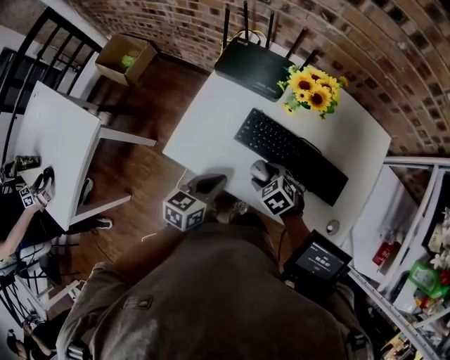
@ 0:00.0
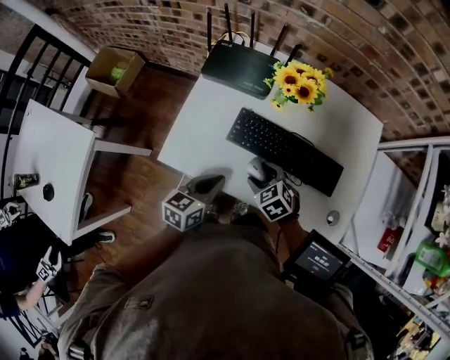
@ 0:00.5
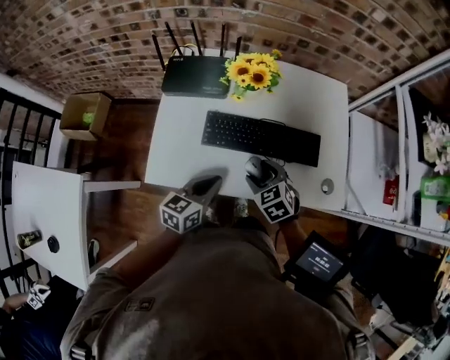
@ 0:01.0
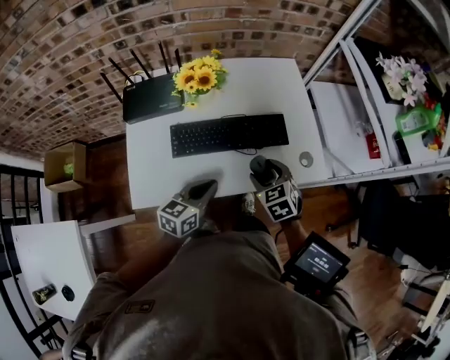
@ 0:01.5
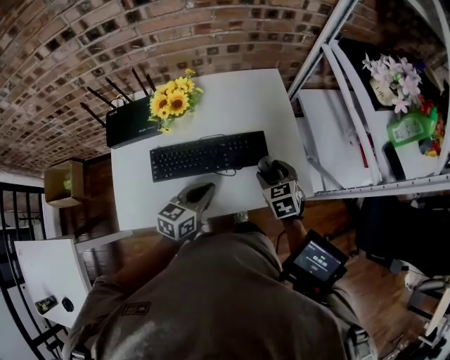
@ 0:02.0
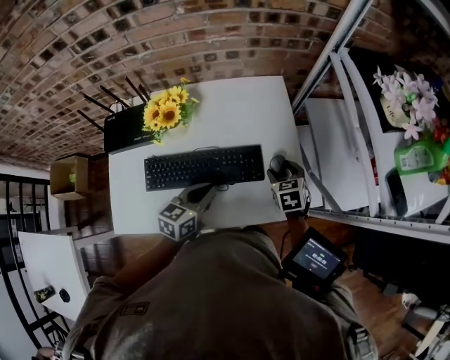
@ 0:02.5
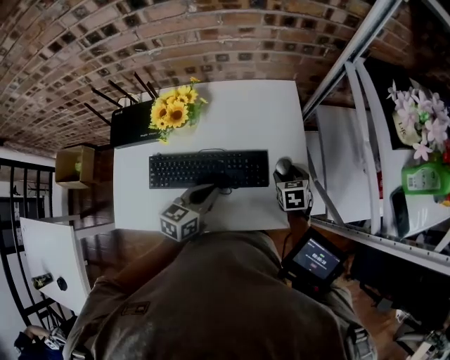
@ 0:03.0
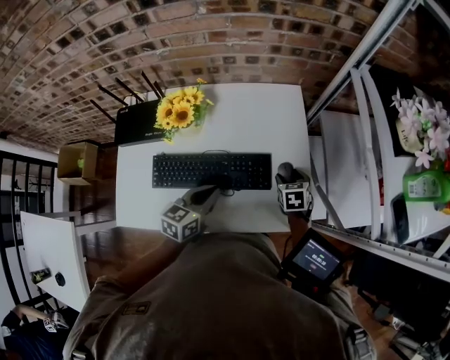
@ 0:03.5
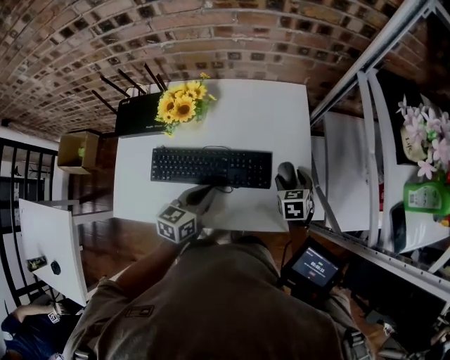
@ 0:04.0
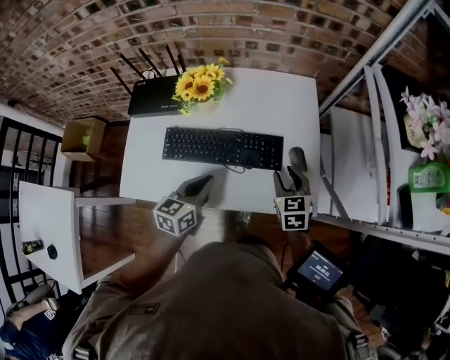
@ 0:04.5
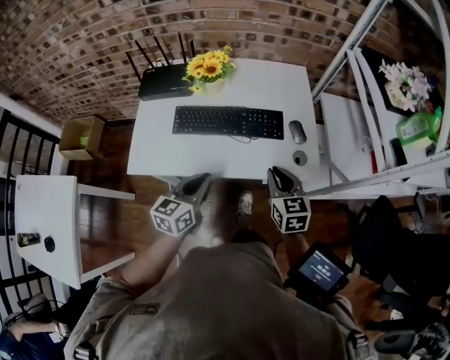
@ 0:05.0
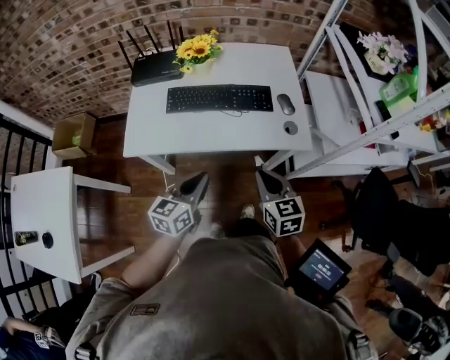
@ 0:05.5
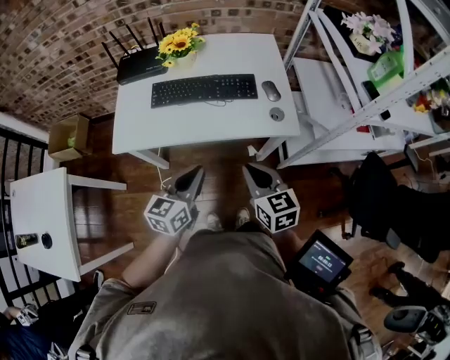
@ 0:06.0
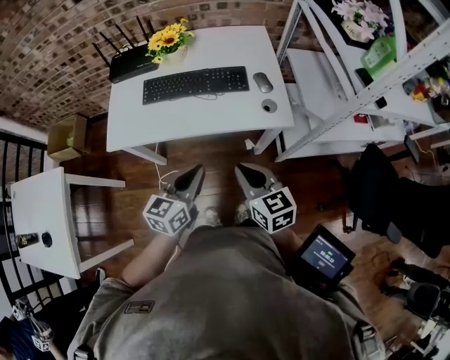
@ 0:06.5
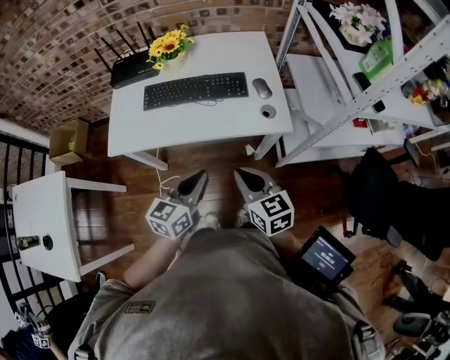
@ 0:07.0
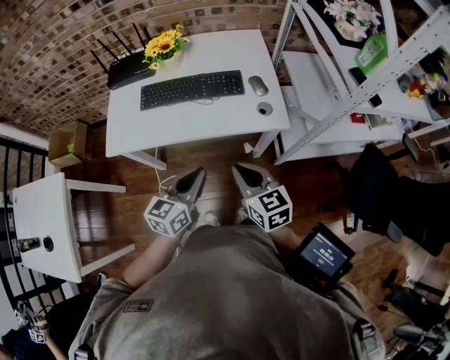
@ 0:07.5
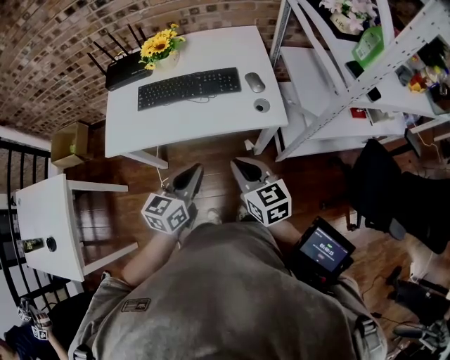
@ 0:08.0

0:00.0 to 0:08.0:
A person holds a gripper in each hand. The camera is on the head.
0:00.0 to 0:02.0: The right gripper changes place by approximately 30 cm, and turns by approximately 60 degrees, while the left gripper ends up approximately 20 cm from where it was, and changes its angle by approximately 30 degrees.
0:02.0 to 0:04.0: The left gripper moves forward, approximately 5 cm. Meanwhile the right gripper goes roughly 15 cm forward, downward and to the right.
0:04.0 to 0:06.0: The left gripper is displaced backward by roughly 25 cm, while the right gripper travels backward and upward by about 40 cm, changes its angle by some 30 degrees, and closes up.
0:06.0 to 0:08.0: The left gripper is displaced to the right by roughly 5 cm.

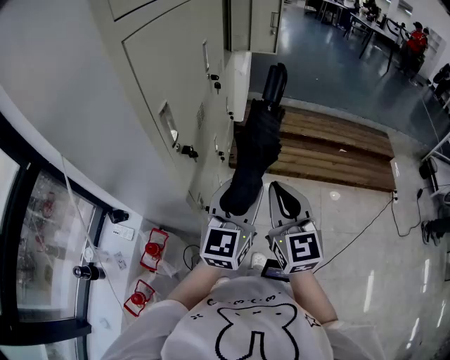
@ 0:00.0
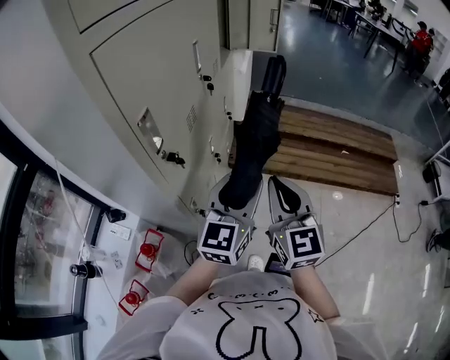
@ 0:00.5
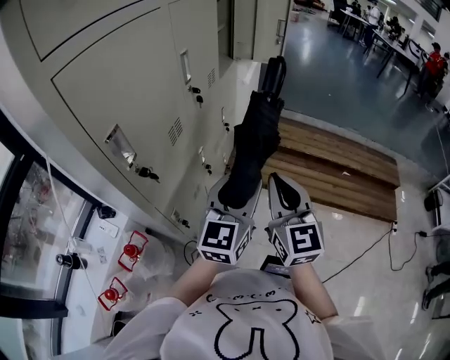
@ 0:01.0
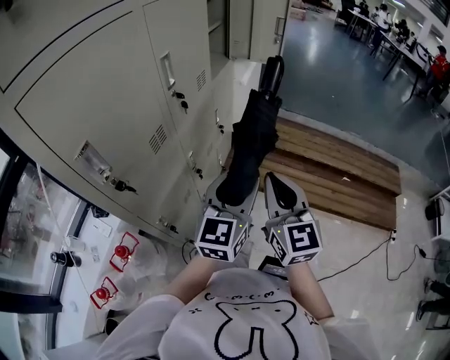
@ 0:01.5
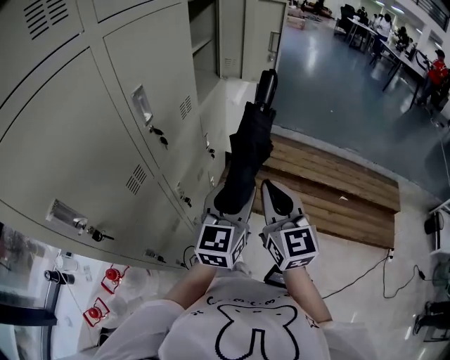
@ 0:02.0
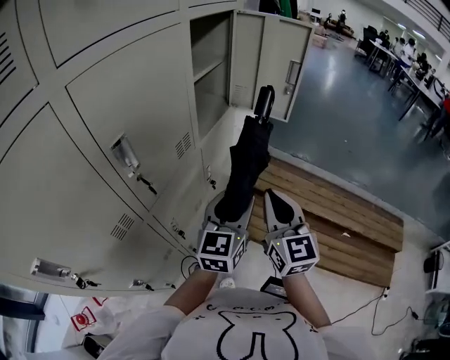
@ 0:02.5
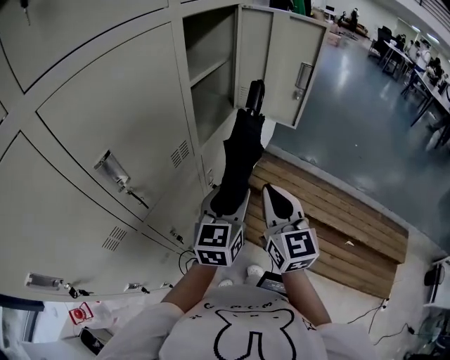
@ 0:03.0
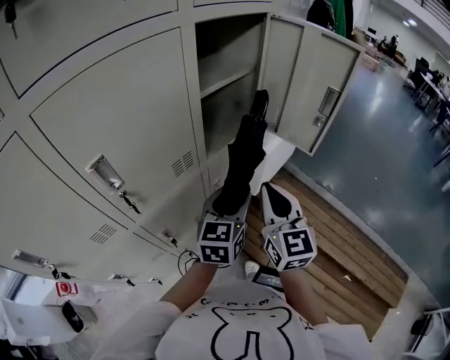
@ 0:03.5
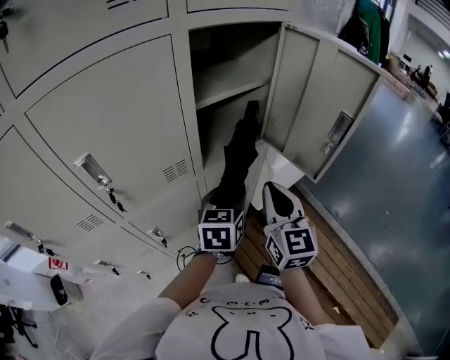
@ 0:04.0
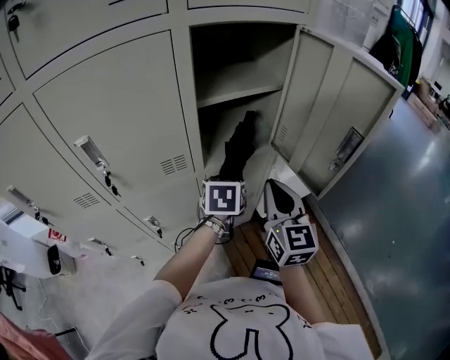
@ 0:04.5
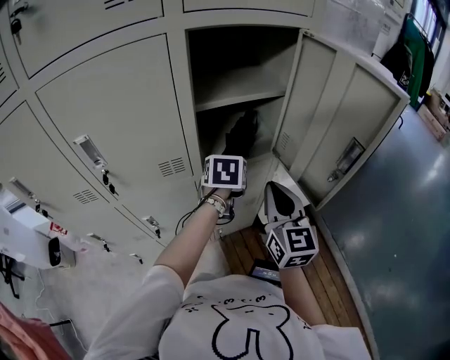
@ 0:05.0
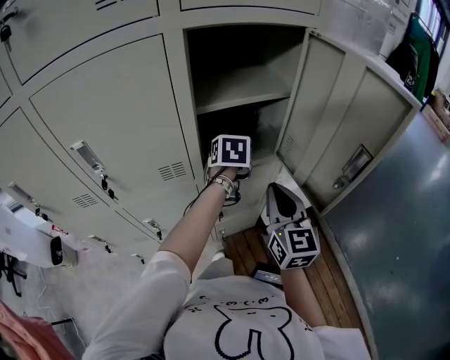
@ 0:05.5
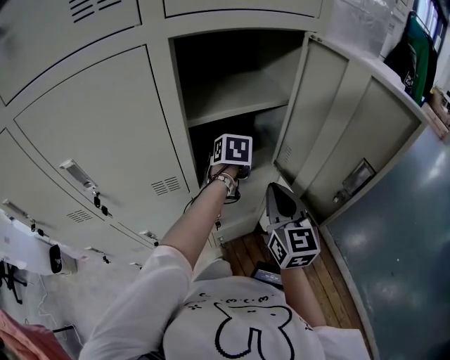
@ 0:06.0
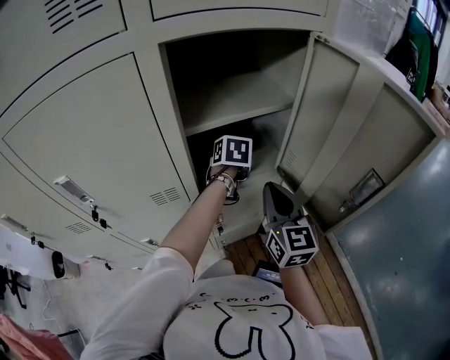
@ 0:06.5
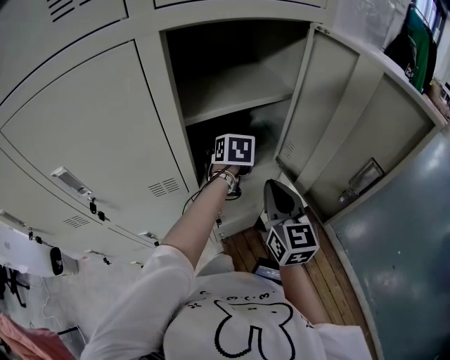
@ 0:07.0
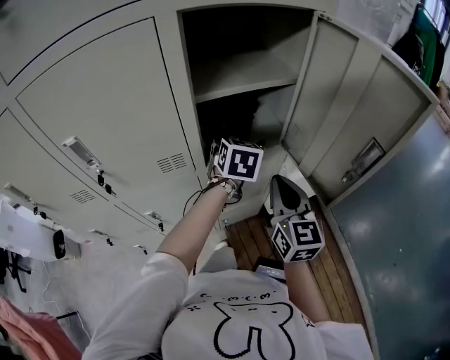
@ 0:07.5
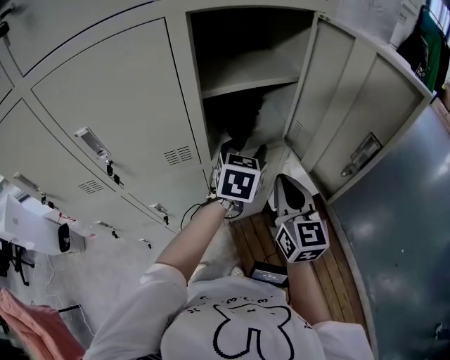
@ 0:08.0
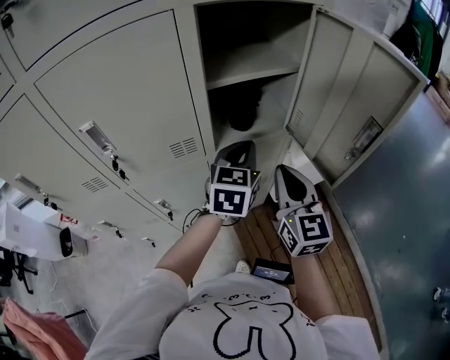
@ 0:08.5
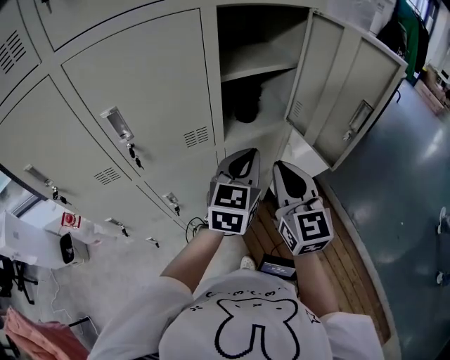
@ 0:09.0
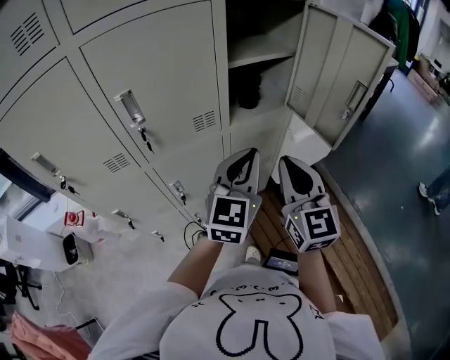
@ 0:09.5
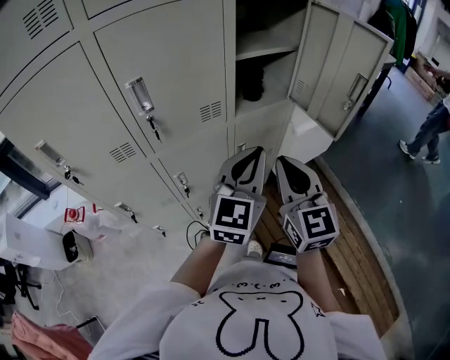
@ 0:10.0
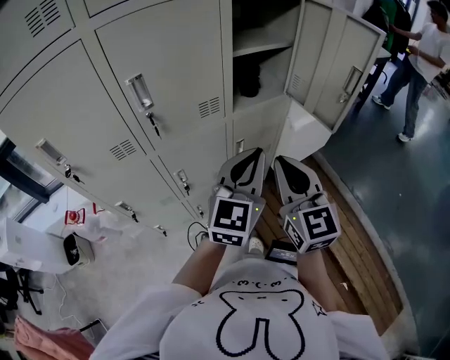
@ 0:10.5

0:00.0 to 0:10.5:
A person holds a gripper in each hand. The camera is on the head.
0:00.0 to 0:02.0: Both grippers move forward and to the right, approximately 30 cm.
0:02.0 to 0:04.0: The left gripper moves approximately 35 cm, and turns by about 50 degrees. The right gripper shifts by roughly 35 cm, and rotates about 30 degrees.
0:04.0 to 0:06.5: The left gripper moves forward, roughly 25 cm, and swivels about 30 degrees. Meanwhile the right gripper goes roughly 15 cm forward.
0:06.5 to 0:08.5: The left gripper heads backward and upward, covering roughly 20 cm, tips its fingers upward by about 30 degrees, and closes; the right gripper travels backward by some 10 cm.
0:08.5 to 0:10.5: The left gripper moves backward, approximately 25 cm, and swivels approximately 20 degrees; the right gripper moves backward and to the left, about 20 cm.

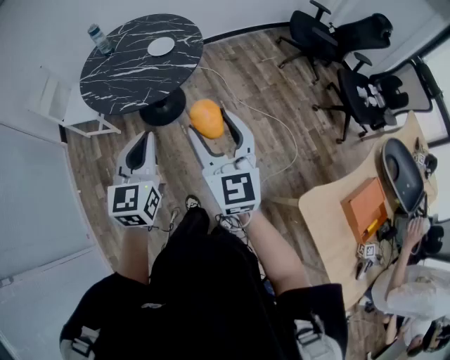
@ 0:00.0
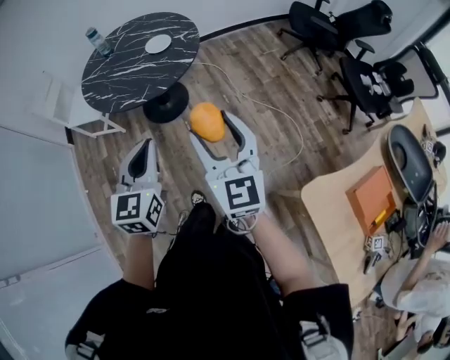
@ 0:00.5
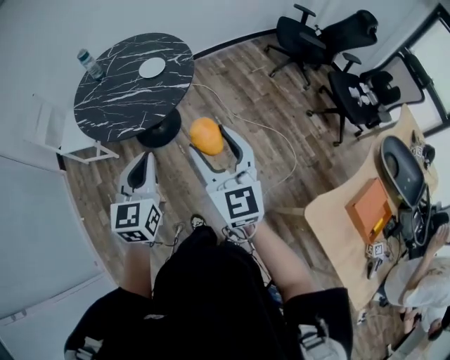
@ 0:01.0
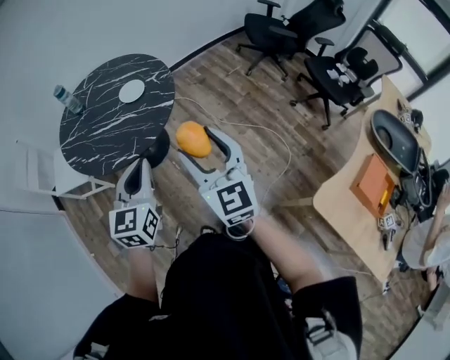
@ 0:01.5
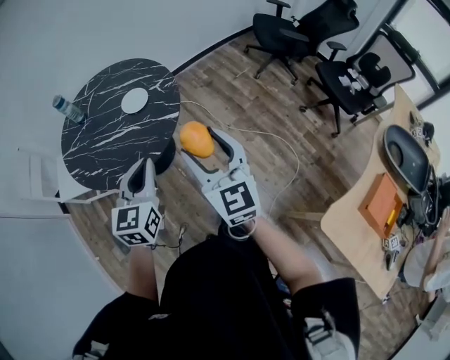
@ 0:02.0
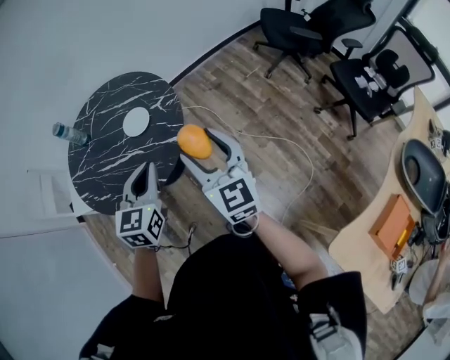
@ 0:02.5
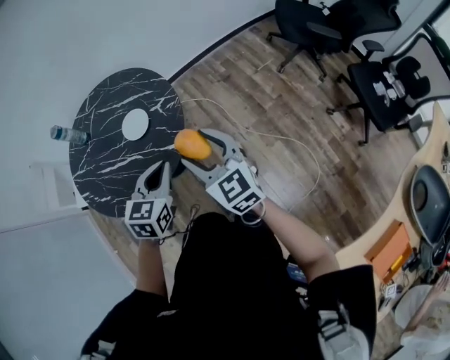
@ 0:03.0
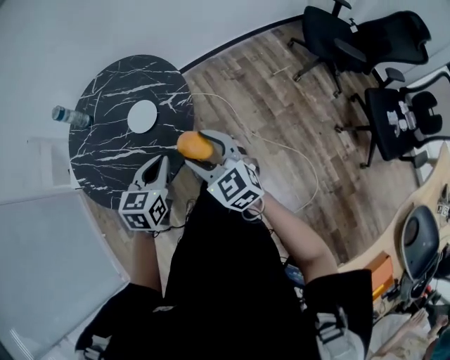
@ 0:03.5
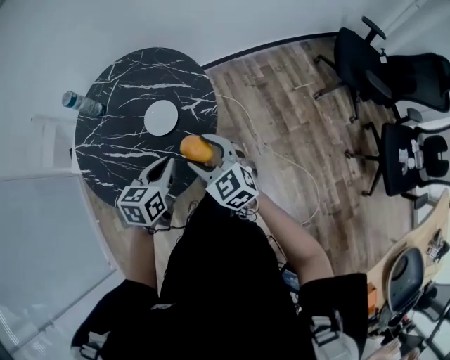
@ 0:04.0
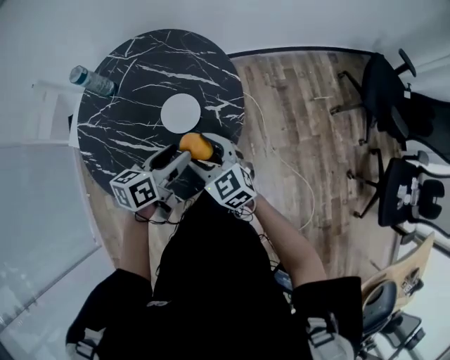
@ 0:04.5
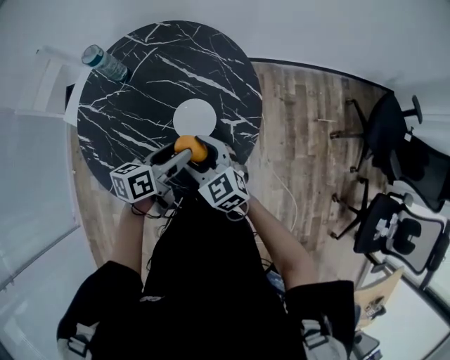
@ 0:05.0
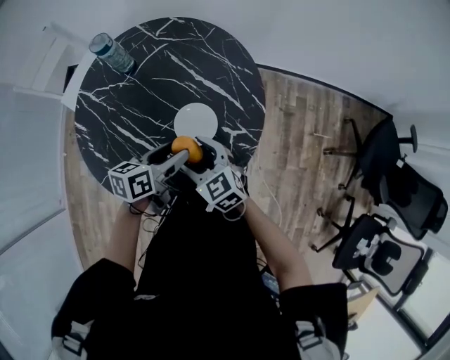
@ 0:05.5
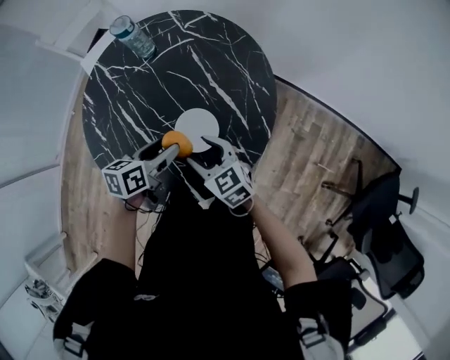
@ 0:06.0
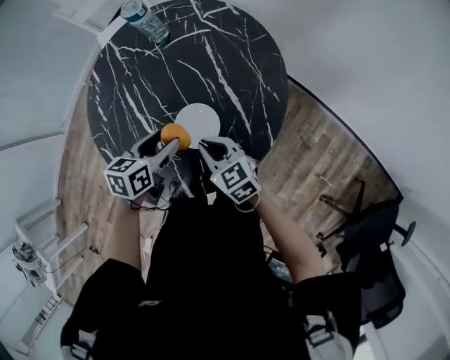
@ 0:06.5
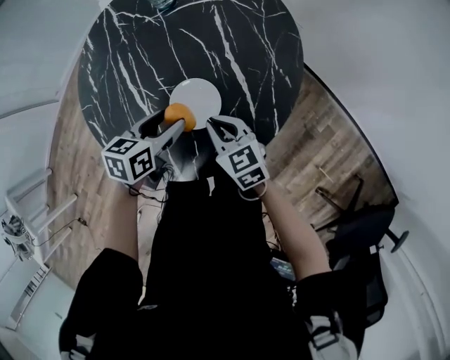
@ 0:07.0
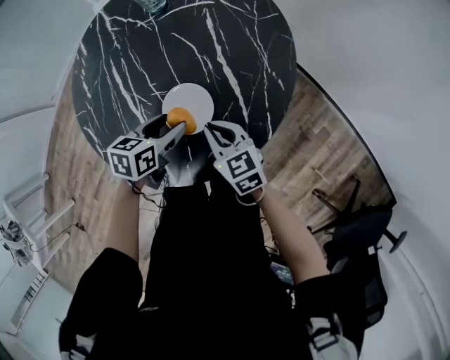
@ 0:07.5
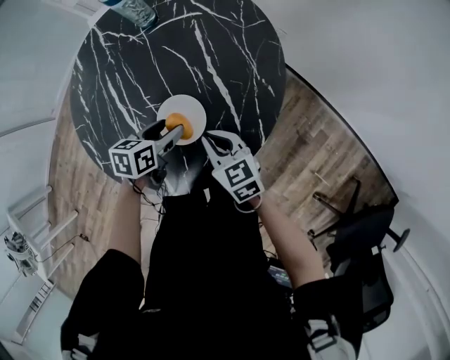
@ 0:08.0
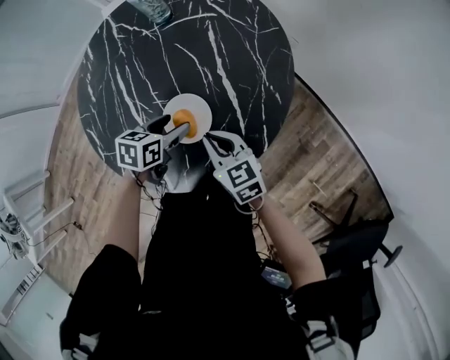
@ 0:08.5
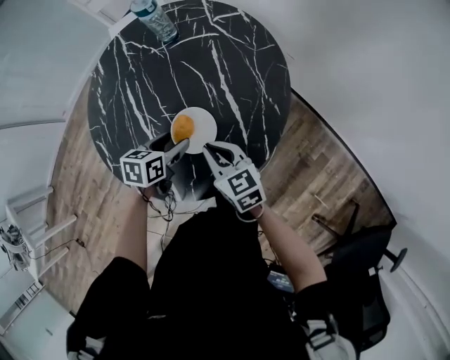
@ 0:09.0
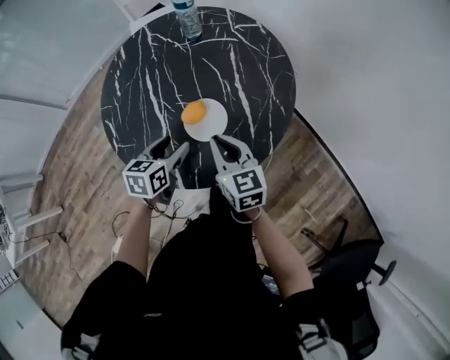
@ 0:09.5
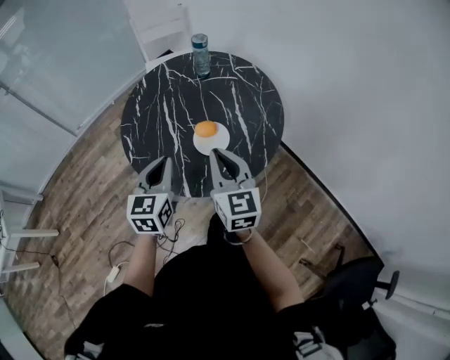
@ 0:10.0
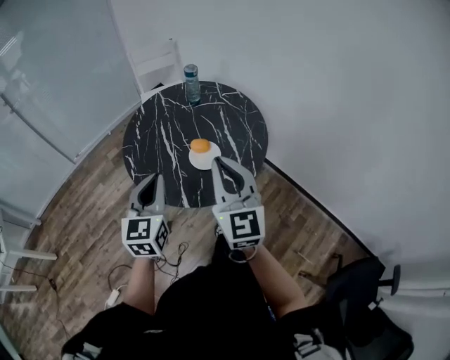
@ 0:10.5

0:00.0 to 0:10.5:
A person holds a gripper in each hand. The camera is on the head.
0:00.0 to 0:02.0: The two grippers go about 20 cm forward.
0:02.0 to 0:04.0: Both grippers move forward and downward, some 35 cm. The left gripper rotates approximately 30 degrees. Meanwhile the right gripper turns by approximately 40 degrees.
0:04.0 to 0:06.5: The left gripper moves some 25 cm, changes its angle by about 50 degrees, and opens. Meanwhile the right gripper shifts by roughly 25 cm, rotates some 50 degrees, and closes up.
0:06.5 to 0:08.5: The right gripper moves some 5 cm, while the left gripper is displaced downward by some 10 cm.
0:08.5 to 0:10.5: Both grippers travel together upward and backward, some 40 cm. The right gripper points its fingers approximately 30 degrees further upward. The left gripper tips its fingers upward by roughly 40 degrees, and closes.
